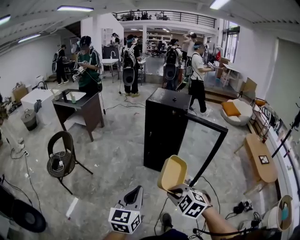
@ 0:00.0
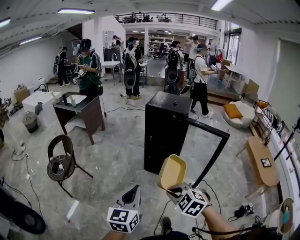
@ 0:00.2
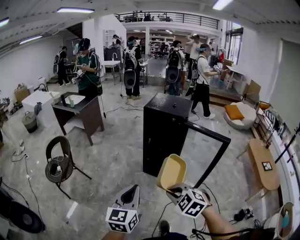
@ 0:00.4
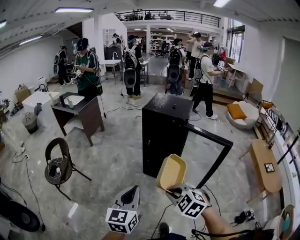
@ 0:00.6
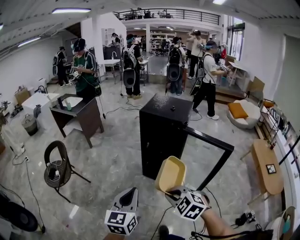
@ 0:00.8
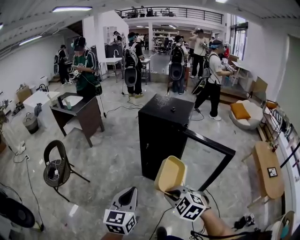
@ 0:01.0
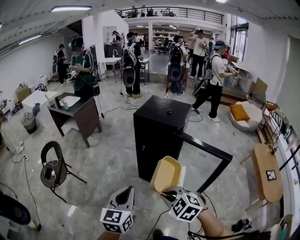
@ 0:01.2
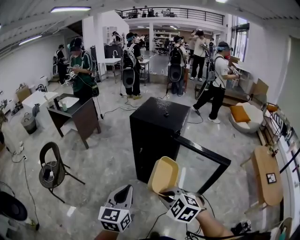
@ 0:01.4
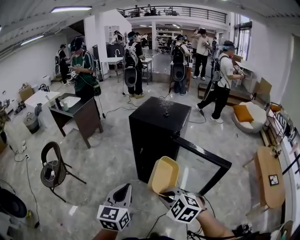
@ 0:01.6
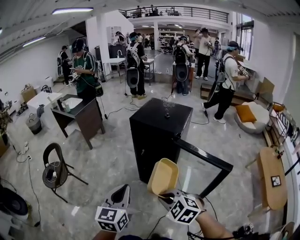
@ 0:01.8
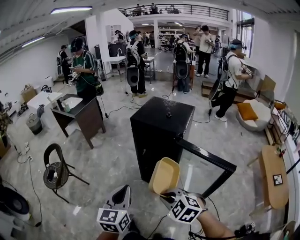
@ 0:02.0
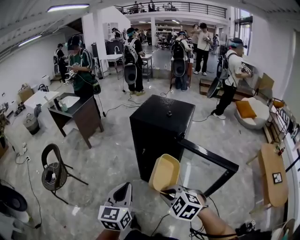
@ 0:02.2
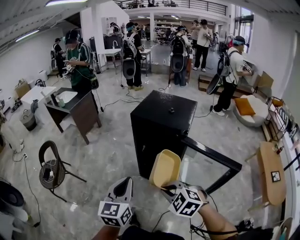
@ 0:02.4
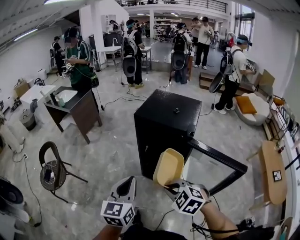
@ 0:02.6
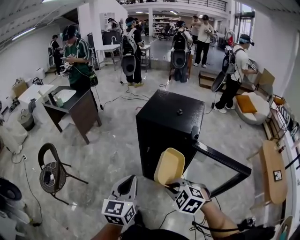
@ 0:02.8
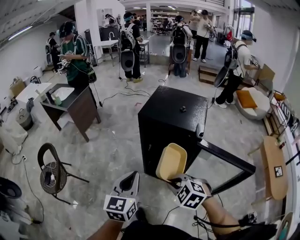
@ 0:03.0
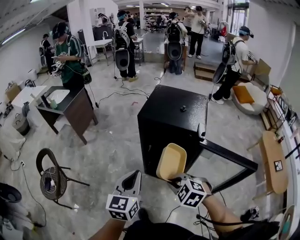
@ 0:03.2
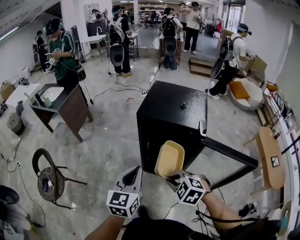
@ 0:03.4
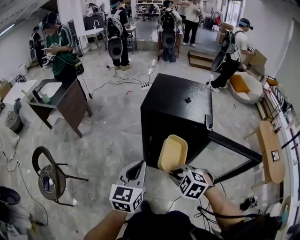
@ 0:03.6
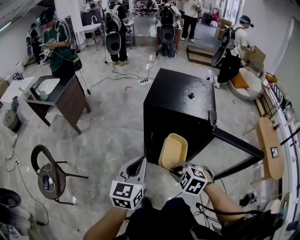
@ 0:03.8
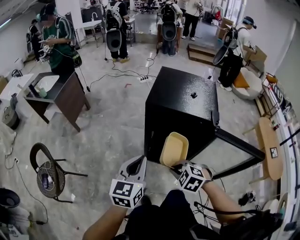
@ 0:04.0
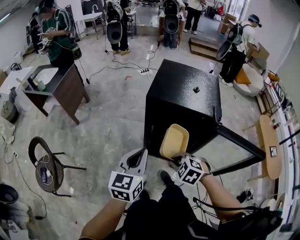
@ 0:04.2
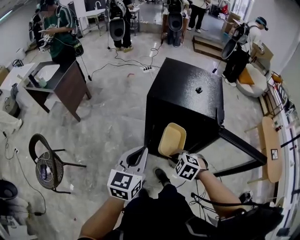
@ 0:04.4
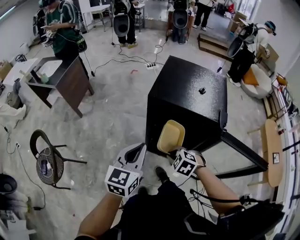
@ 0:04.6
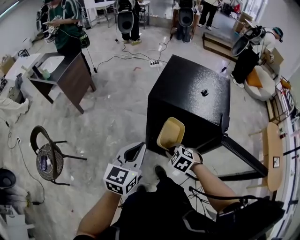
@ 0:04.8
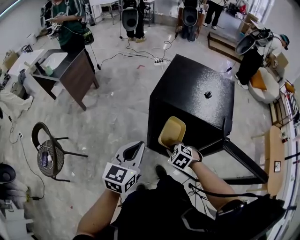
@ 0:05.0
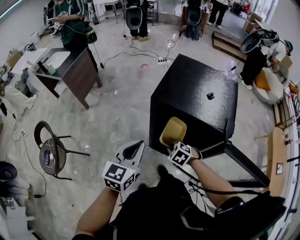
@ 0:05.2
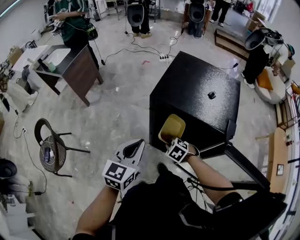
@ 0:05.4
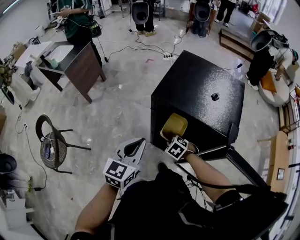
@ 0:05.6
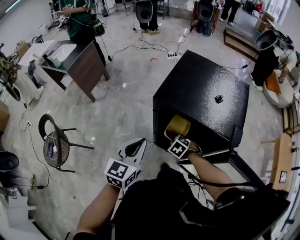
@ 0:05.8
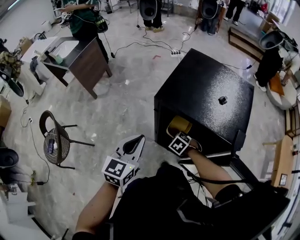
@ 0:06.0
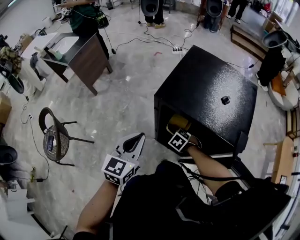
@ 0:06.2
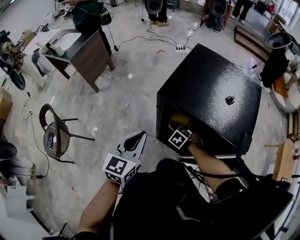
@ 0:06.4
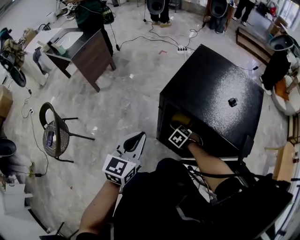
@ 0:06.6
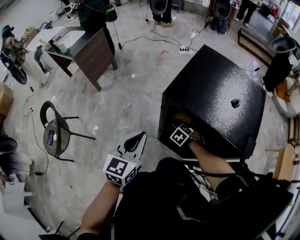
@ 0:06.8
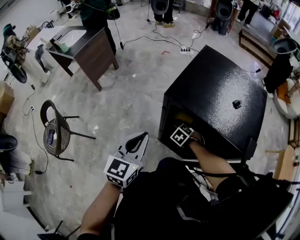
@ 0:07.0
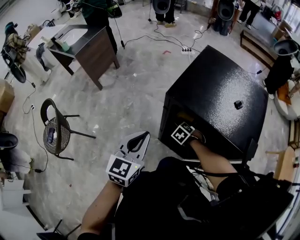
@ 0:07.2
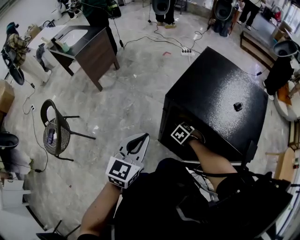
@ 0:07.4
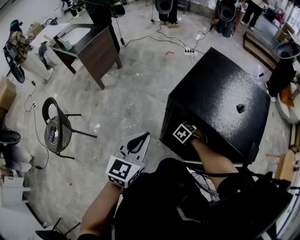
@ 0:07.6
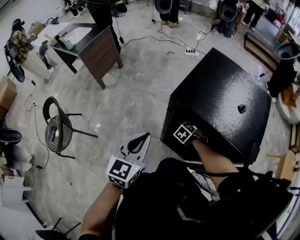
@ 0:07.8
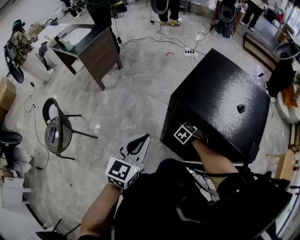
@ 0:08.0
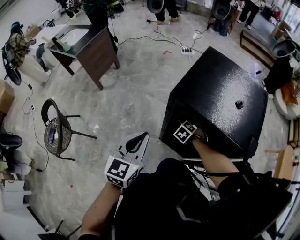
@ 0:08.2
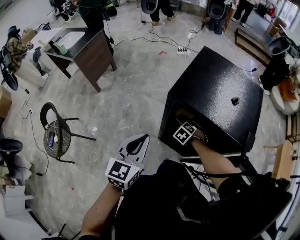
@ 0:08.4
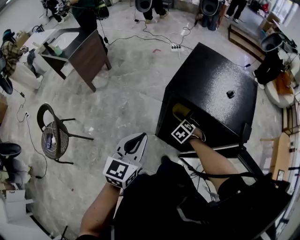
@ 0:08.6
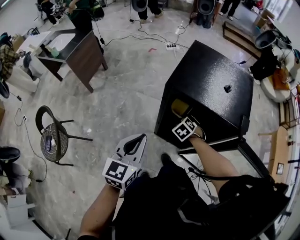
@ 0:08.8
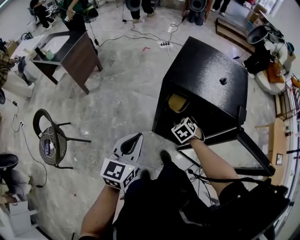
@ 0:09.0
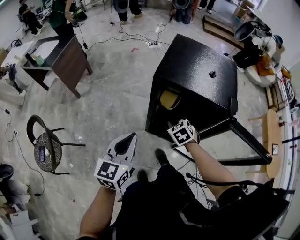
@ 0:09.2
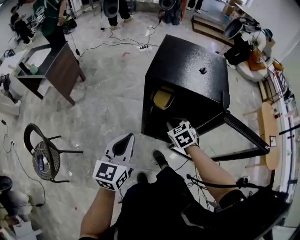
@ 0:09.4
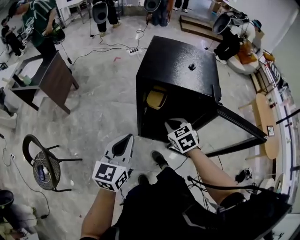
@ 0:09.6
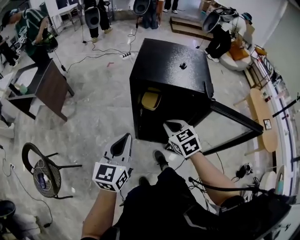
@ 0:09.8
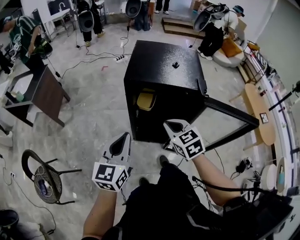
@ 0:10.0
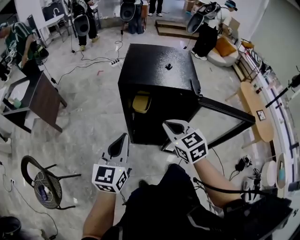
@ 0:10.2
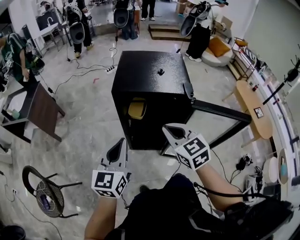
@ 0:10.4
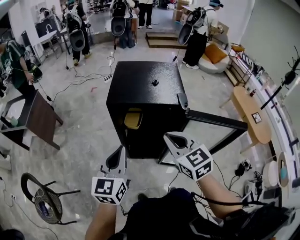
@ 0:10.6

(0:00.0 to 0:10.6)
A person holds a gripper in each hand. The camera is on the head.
0:00.0 - 0:01.6: The grippers both shift forward and to the right by some 25 cm.
0:01.6 - 0:03.0: The grippers both shift forward by roughly 15 cm.
0:03.0 - 0:04.6: The right gripper moves forward and downward, roughly 20 cm, while the left gripper travels forward by some 15 cm.
0:04.6 - 0:06.0: The right gripper goes some 20 cm forward and downward. Meanwhile the left gripper moves forward and downward, approximately 10 cm.
0:06.0 - 0:07.6: The right gripper ends up approximately 10 cm from where it was.
0:07.6 - 0:09.0: The left gripper ends up some 10 cm from where it was. The right gripper heads upward, covering some 10 cm, swivels some 20 degrees, and opens its fingers.
0:09.0 - 0:10.6: The right gripper goes roughly 30 cm upward and backward, points its fingers approximately 40 degrees further upward, and closes its fingers. Meanwhile the left gripper moves to the right and upward, about 10 cm.

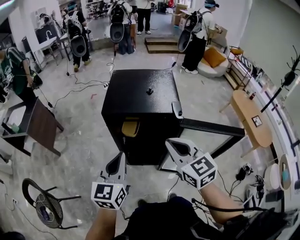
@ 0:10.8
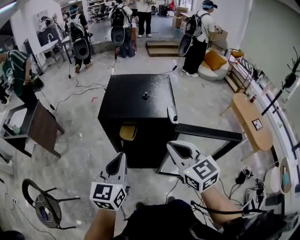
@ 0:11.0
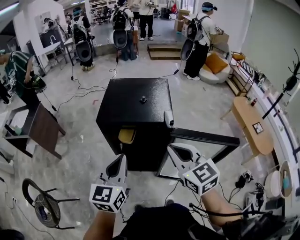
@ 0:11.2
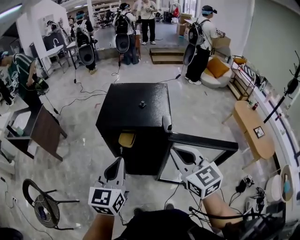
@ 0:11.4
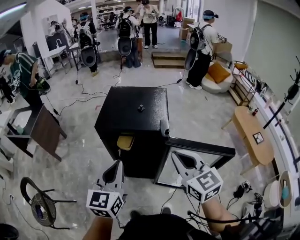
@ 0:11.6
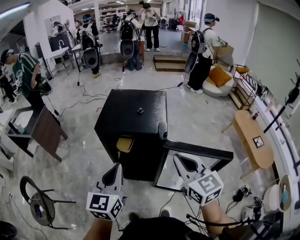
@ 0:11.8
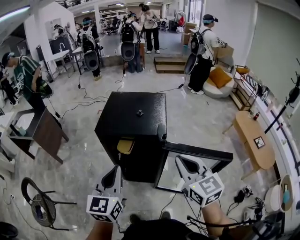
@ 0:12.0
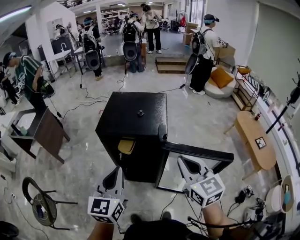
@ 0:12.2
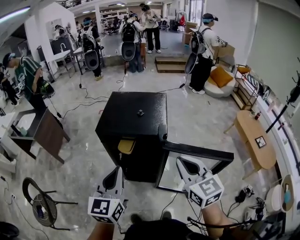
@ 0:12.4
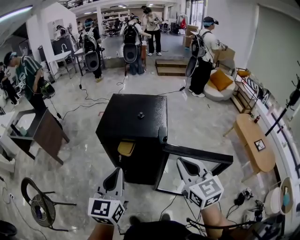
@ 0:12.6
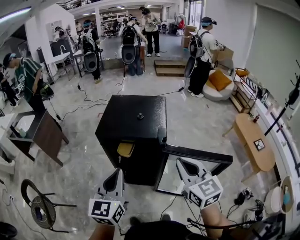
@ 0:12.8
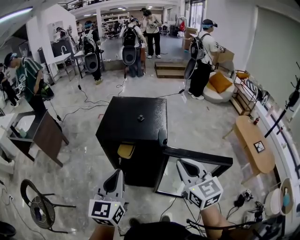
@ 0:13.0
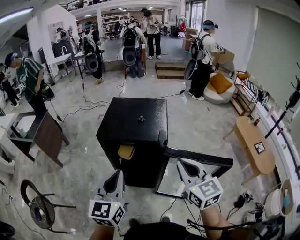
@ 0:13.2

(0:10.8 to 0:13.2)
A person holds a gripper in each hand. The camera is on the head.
0:10.8 - 0:12.0: The right gripper heads to the right, covering about 10 cm, while the left gripper heads to the right and upward, covering some 10 cm.
0:12.0 - 0:13.2: Both grippers stay about where they are.

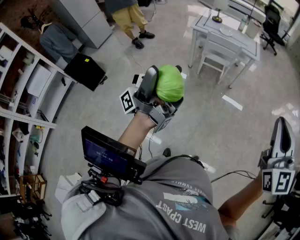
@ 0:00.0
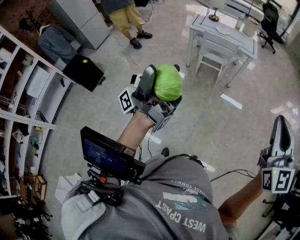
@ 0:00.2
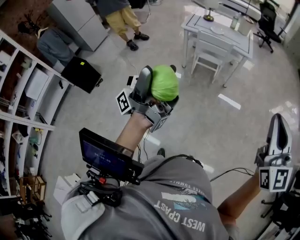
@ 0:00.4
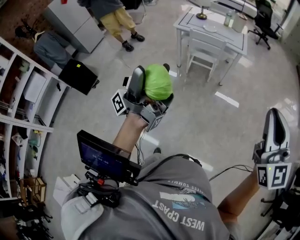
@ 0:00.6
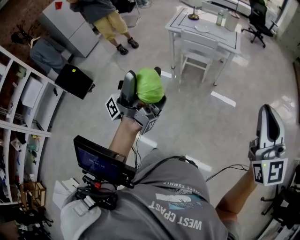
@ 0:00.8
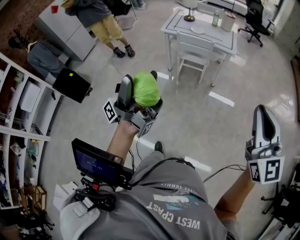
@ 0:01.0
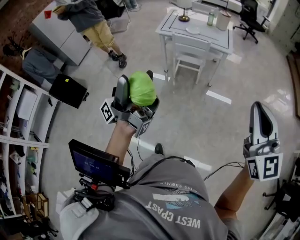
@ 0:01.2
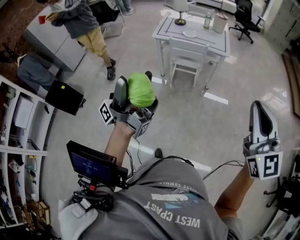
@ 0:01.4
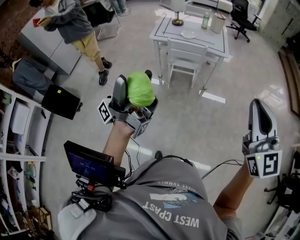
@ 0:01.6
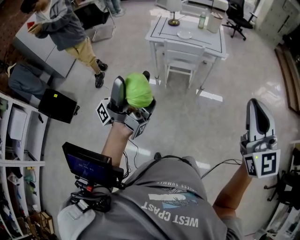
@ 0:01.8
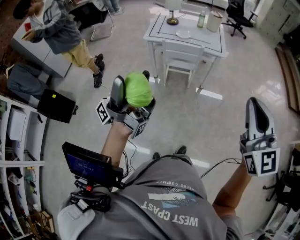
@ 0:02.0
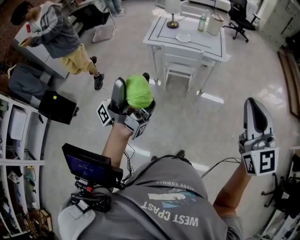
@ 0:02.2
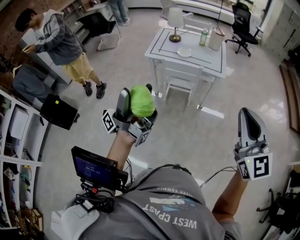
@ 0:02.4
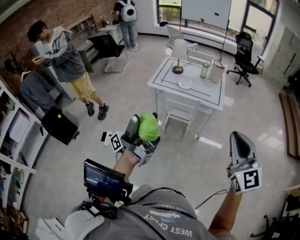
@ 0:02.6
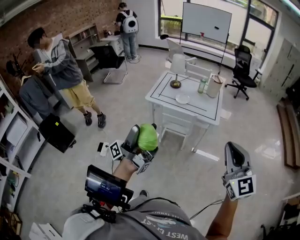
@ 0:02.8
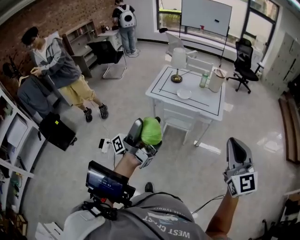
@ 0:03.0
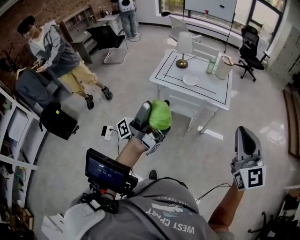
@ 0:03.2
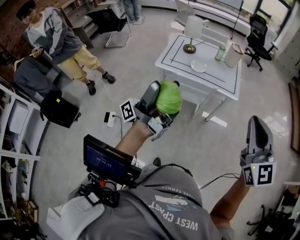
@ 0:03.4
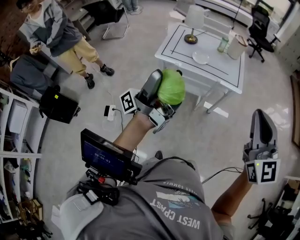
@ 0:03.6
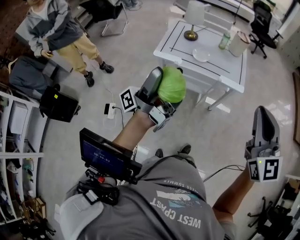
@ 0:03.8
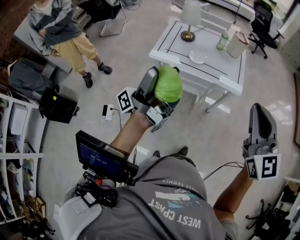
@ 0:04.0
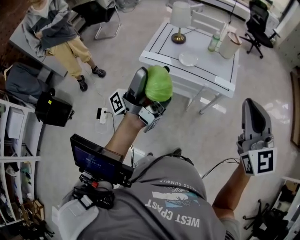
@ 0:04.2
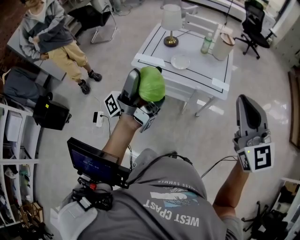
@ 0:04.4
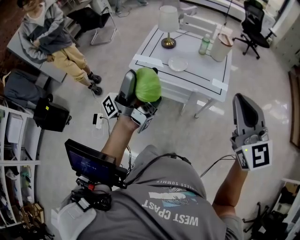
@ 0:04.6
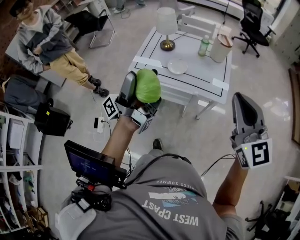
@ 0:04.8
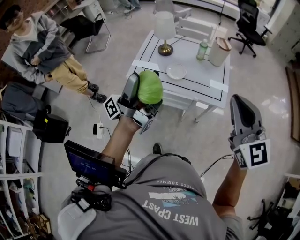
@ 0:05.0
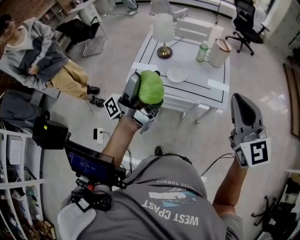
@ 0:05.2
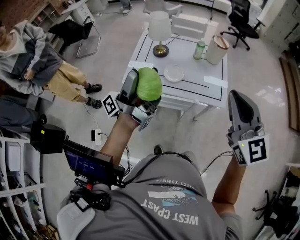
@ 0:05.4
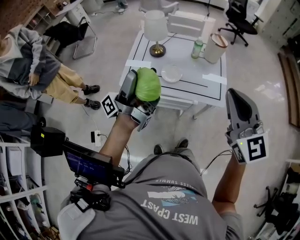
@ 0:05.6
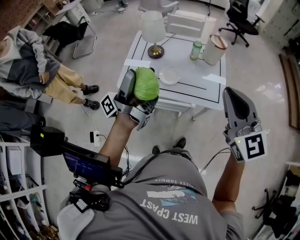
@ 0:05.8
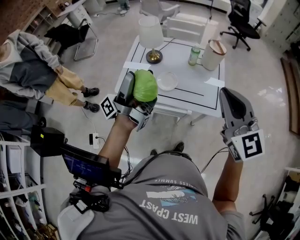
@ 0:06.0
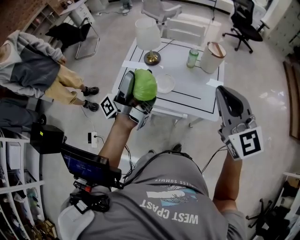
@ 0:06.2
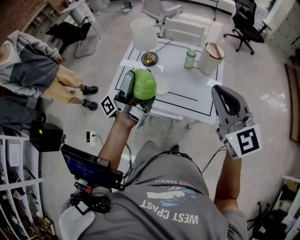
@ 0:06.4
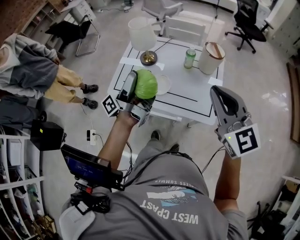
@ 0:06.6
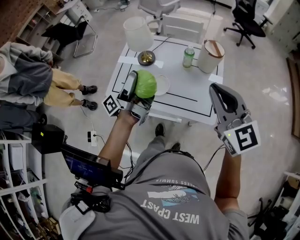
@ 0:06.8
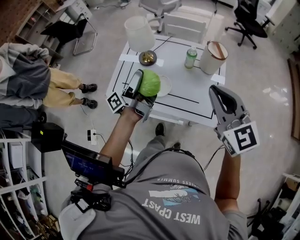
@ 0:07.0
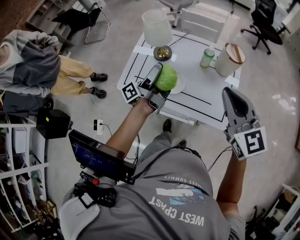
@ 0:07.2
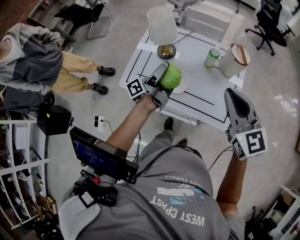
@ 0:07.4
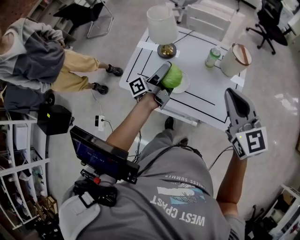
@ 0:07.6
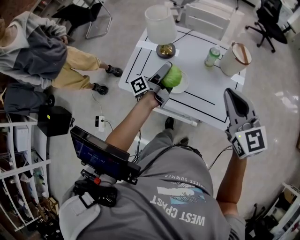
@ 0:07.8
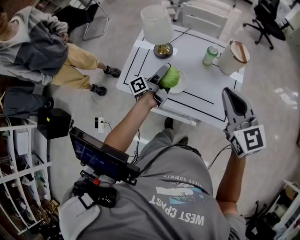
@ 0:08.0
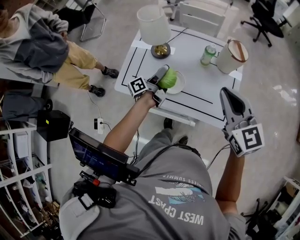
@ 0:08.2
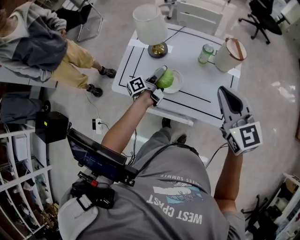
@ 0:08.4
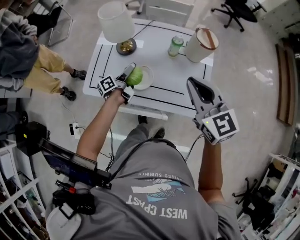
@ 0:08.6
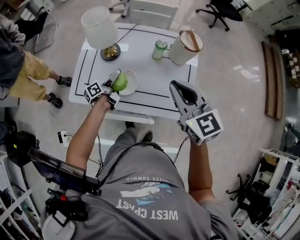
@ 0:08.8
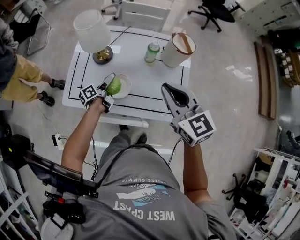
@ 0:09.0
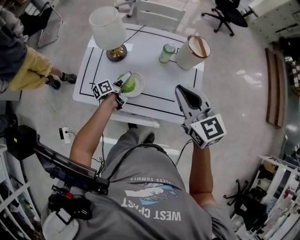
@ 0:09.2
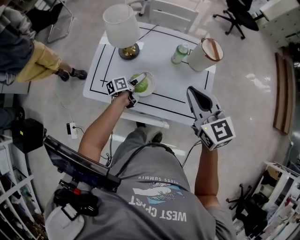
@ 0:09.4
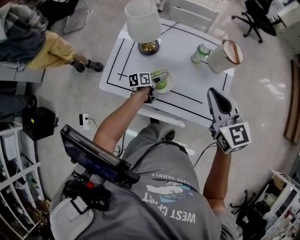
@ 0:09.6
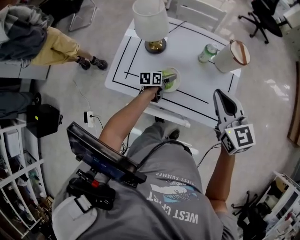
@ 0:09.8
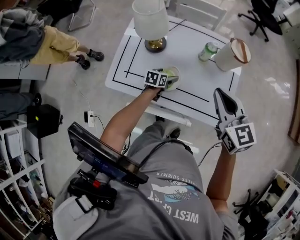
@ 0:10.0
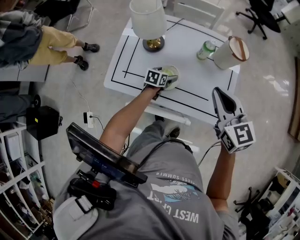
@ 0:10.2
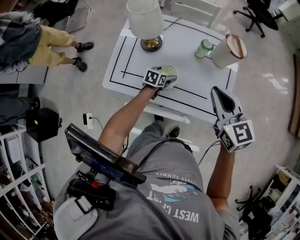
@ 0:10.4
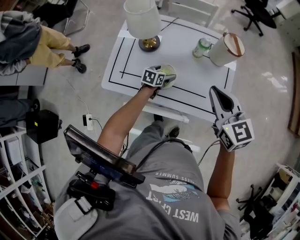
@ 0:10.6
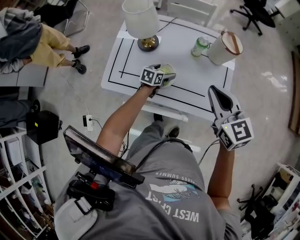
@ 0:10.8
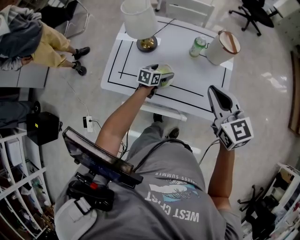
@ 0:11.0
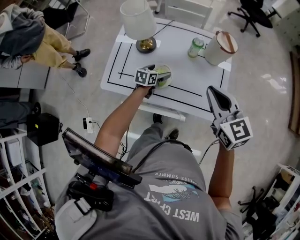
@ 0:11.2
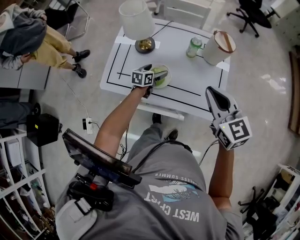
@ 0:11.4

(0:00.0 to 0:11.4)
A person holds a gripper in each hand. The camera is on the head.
0:00.0 - 0:01.4: The grippers both shift forward and to the right by about 15 cm.
0:01.4 - 0:02.8: Both grippers travel together forward, roughly 25 cm.
0:02.8 - 0:04.2: Both grippers travel together forward, some 25 cm.
0:04.2 - 0:05.6: The two grippers go about 20 cm forward.
0:05.6 - 0:07.2: The right gripper shifts roughly 20 cm forward and downward. The left gripper goes roughly 25 cm forward, downward and to the right, and changes its angle by about 20 degrees.
0:07.2 - 0:08.6: The left gripper moves downward, about 20 cm, and tips its fingers downward by approximately 30 degrees; the right gripper travels downward by some 5 cm.
0:08.6 - 0:10.0: The left gripper travels downward and to the right by roughly 15 cm, and tips its fingers downward by roughly 40 degrees.
0:10.0 - 0:11.4: The right gripper changes place by about 5 cm. Meanwhile the left gripper is displaced upward by approximately 5 cm.
